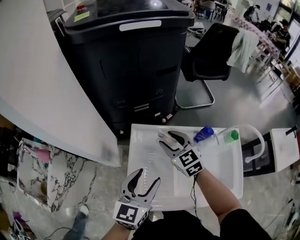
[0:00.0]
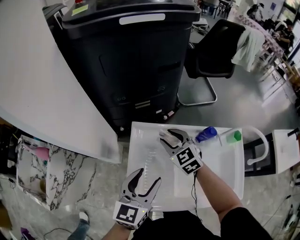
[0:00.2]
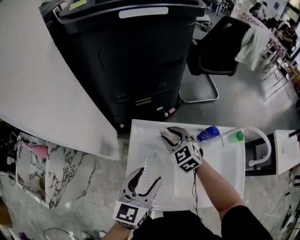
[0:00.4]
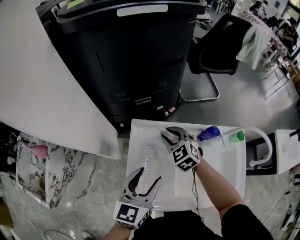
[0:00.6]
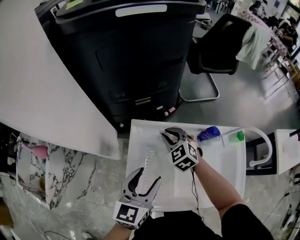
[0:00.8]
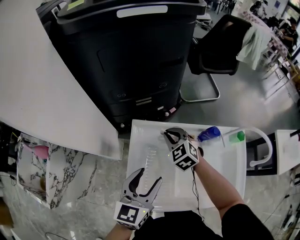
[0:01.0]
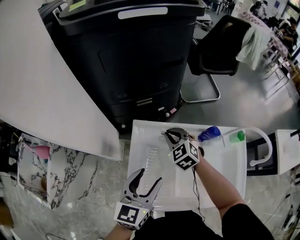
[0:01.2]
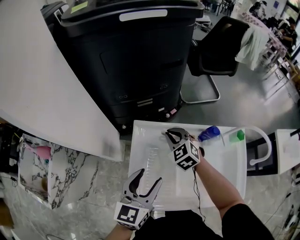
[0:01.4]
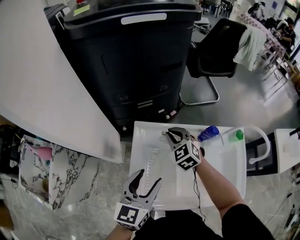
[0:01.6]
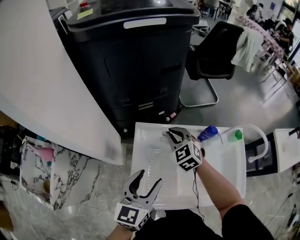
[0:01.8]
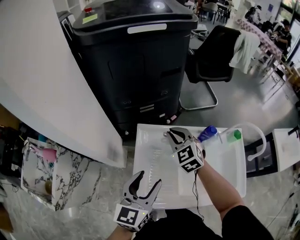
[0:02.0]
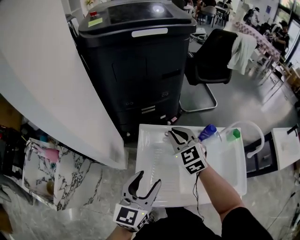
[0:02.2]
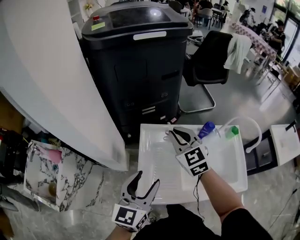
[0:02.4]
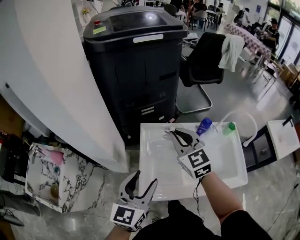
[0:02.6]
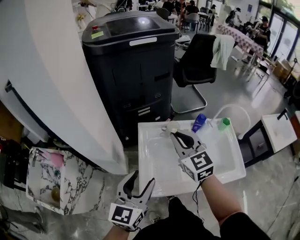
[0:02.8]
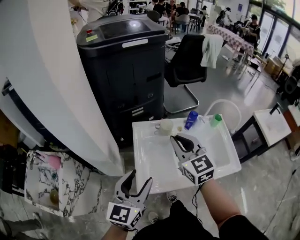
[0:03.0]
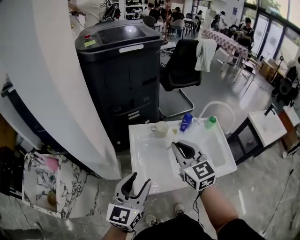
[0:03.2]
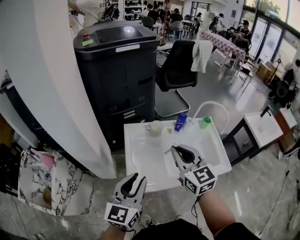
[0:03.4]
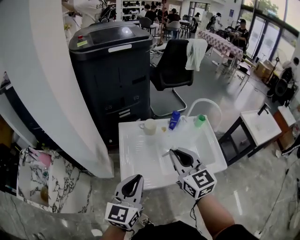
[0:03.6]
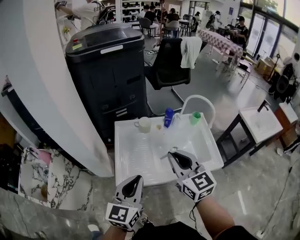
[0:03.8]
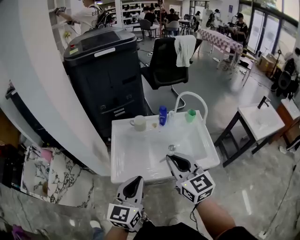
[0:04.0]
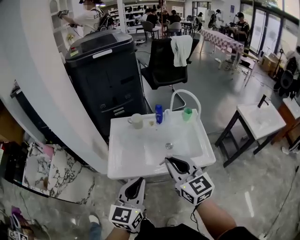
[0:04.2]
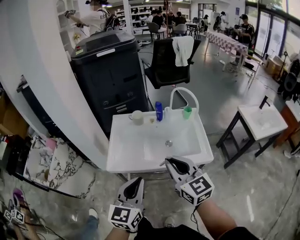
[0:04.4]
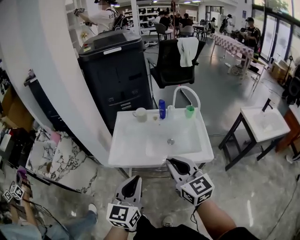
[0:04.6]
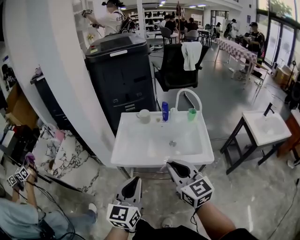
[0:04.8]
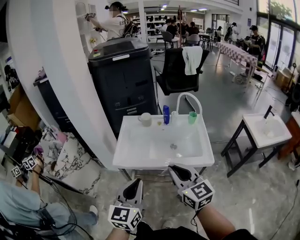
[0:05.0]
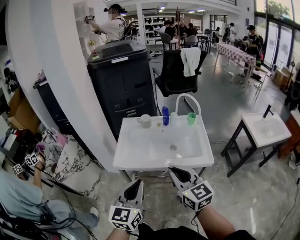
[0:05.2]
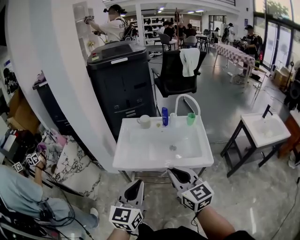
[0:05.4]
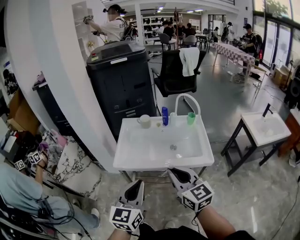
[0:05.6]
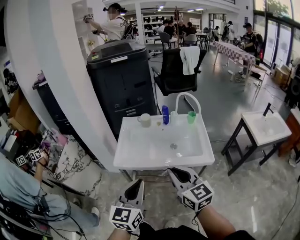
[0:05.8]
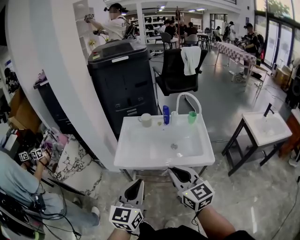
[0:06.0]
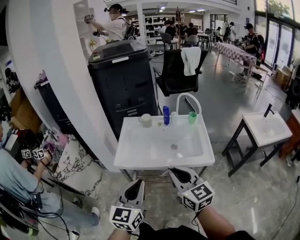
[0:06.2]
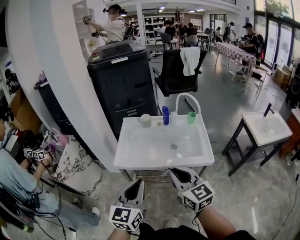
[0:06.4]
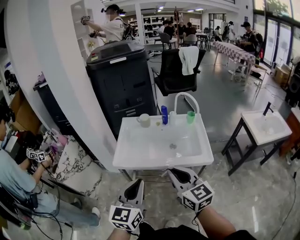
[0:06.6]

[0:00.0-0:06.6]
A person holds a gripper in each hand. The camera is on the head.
0:00.0 to 0:01.6: The right gripper closes.
0:01.6 to 0:03.2: The left gripper goes some 20 cm backward and upward. The right gripper is displaced backward and upward by about 30 cm, and turns by approximately 40 degrees.
0:03.2 to 0:05.0: The grippers both shift backward and to the right by approximately 30 cm. The left gripper closes up.
0:05.0 to 0:06.6: The grippers move only a little.

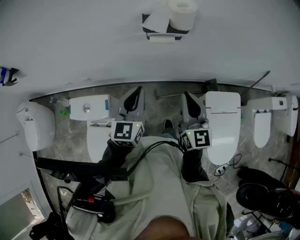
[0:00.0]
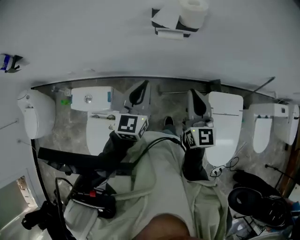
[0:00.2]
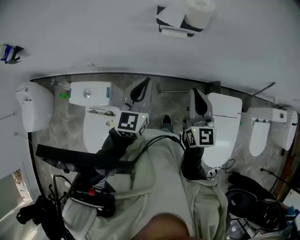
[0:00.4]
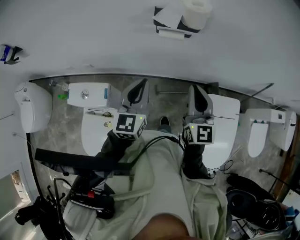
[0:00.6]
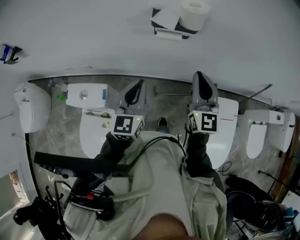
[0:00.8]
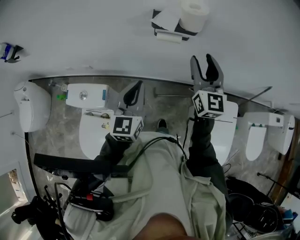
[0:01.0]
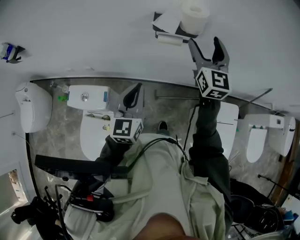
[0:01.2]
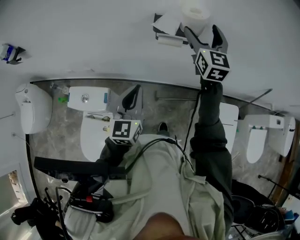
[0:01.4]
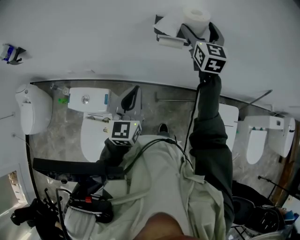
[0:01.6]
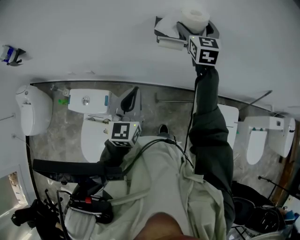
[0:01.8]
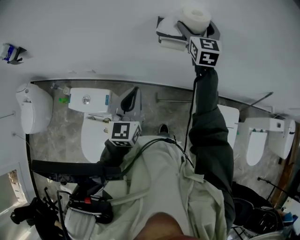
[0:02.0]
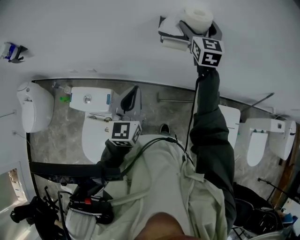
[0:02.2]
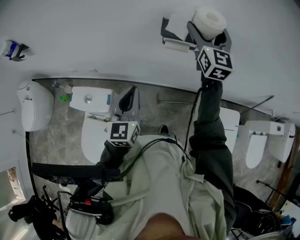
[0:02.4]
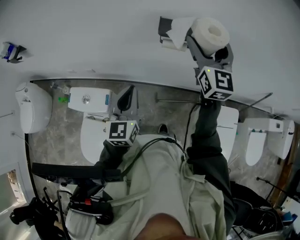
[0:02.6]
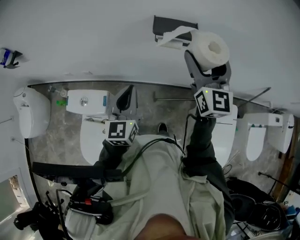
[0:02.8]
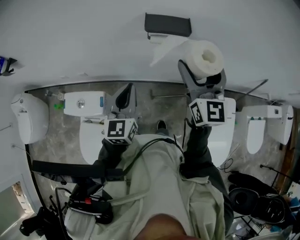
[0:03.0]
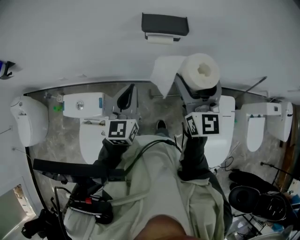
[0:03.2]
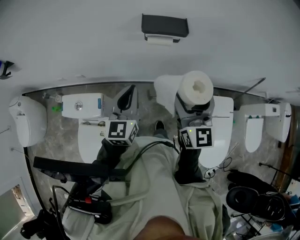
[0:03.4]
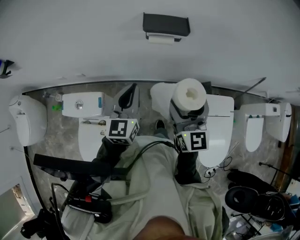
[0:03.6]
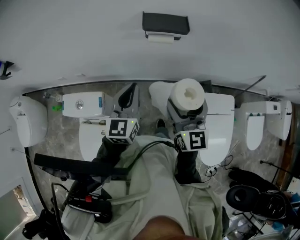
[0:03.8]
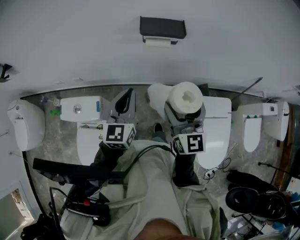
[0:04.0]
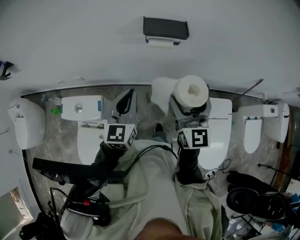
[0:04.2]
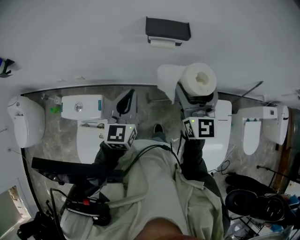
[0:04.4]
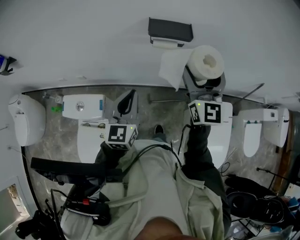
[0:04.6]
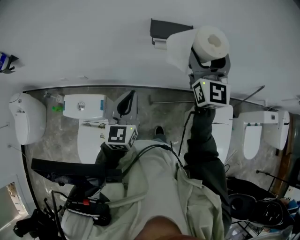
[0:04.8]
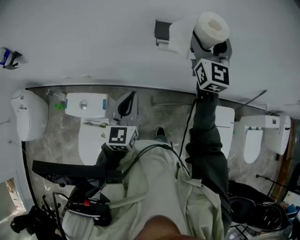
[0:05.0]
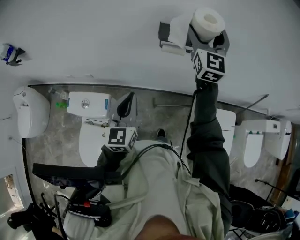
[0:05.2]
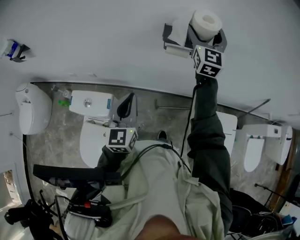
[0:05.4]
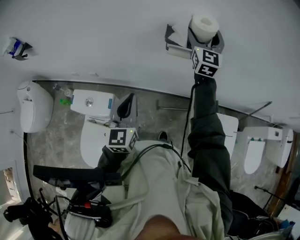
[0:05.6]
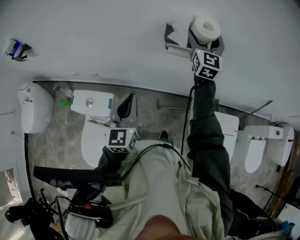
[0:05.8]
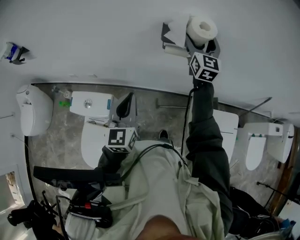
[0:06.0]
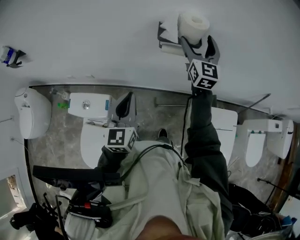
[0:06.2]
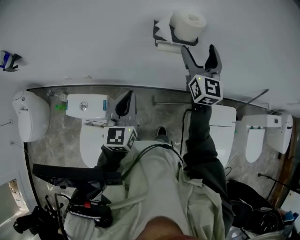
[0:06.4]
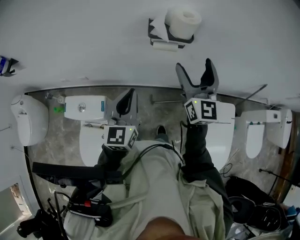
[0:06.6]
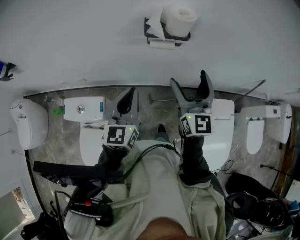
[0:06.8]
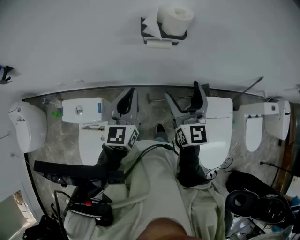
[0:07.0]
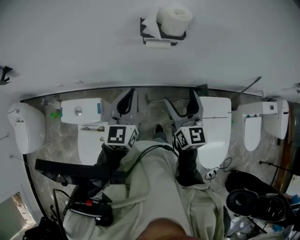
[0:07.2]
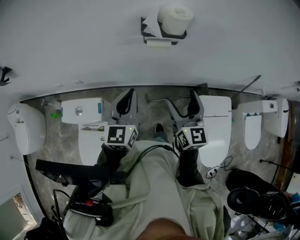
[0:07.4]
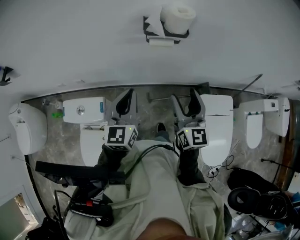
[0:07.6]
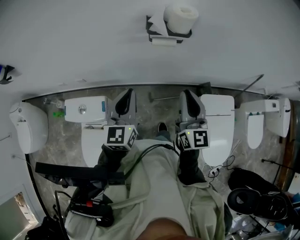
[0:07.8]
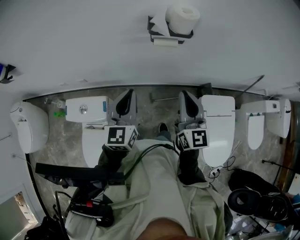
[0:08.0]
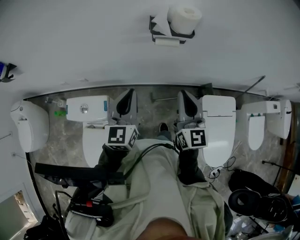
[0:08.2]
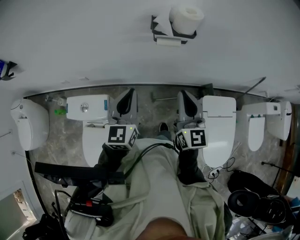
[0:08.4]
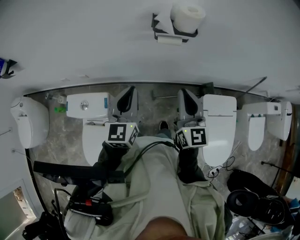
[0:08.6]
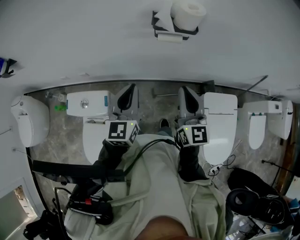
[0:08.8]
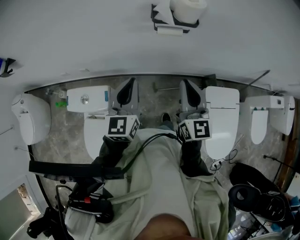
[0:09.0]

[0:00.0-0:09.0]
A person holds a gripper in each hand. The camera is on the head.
0:00.0 to 0:01.6: The right gripper travels forward by roughly 25 cm, and opens up.
0:01.6 to 0:03.0: The right gripper travels backward by about 15 cm.
0:04.4 to 0:06.0: The right gripper travels forward by about 25 cm.
0:06.0 to 0:07.6: The right gripper shifts approximately 25 cm backward.
0:07.6 to 0:09.0: The right gripper closes.

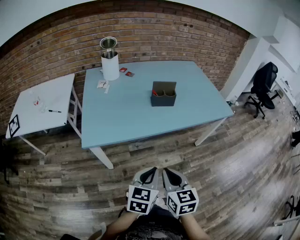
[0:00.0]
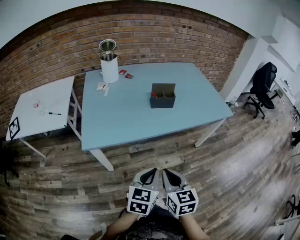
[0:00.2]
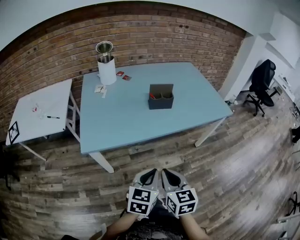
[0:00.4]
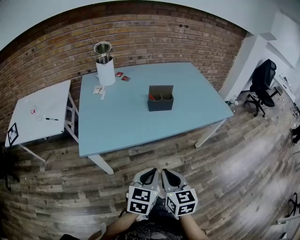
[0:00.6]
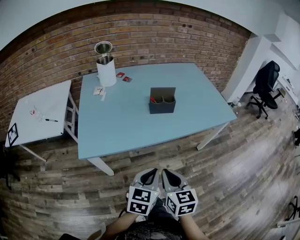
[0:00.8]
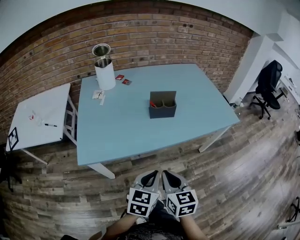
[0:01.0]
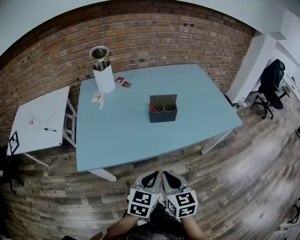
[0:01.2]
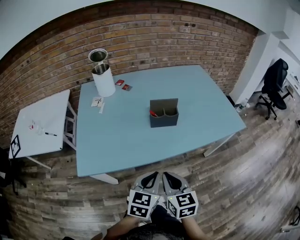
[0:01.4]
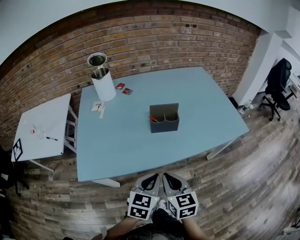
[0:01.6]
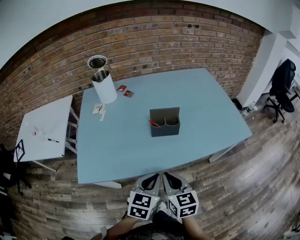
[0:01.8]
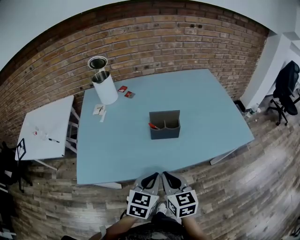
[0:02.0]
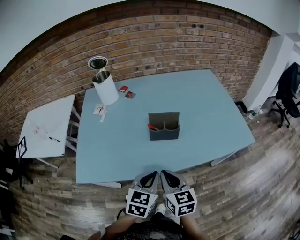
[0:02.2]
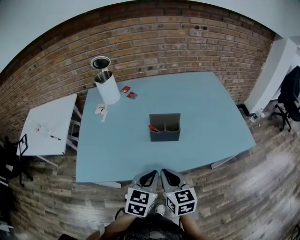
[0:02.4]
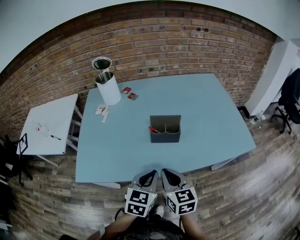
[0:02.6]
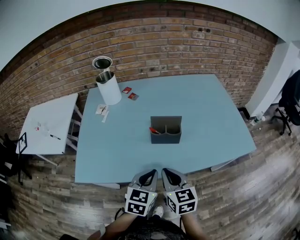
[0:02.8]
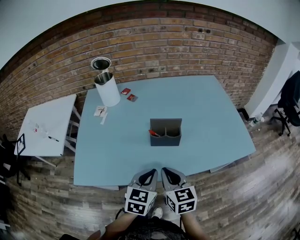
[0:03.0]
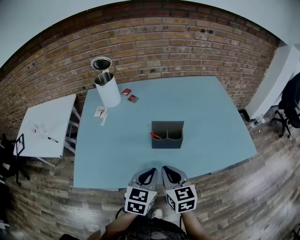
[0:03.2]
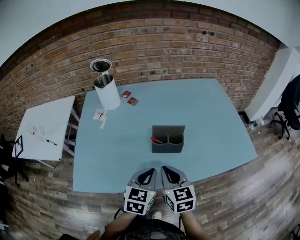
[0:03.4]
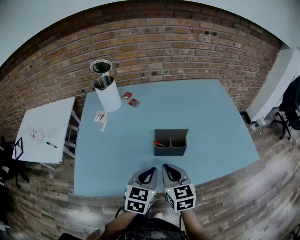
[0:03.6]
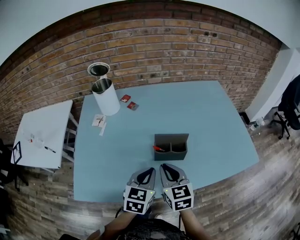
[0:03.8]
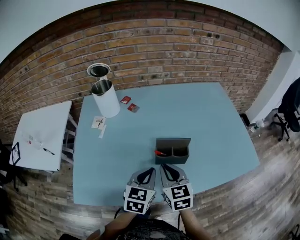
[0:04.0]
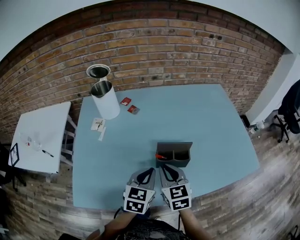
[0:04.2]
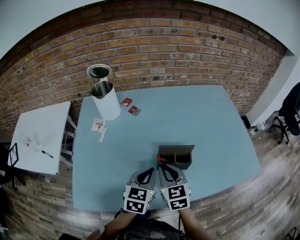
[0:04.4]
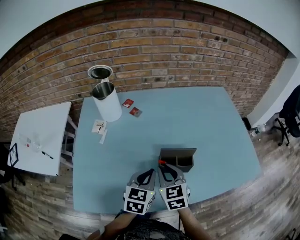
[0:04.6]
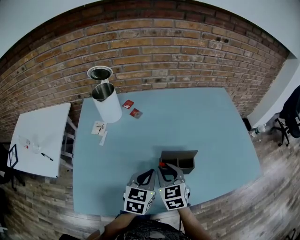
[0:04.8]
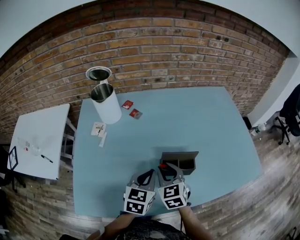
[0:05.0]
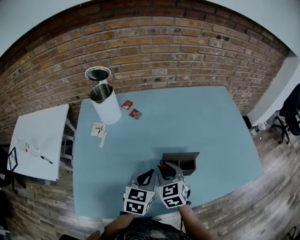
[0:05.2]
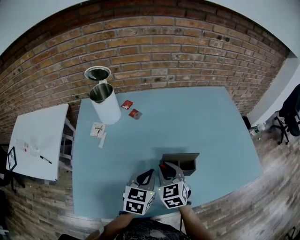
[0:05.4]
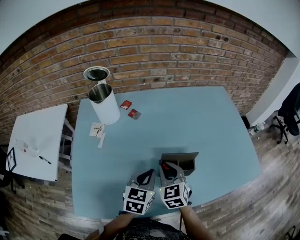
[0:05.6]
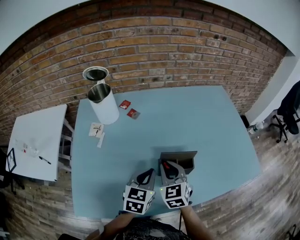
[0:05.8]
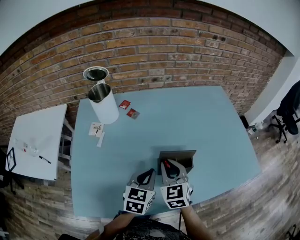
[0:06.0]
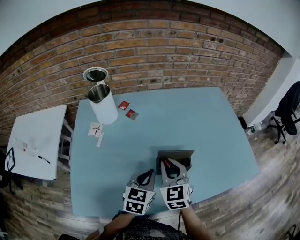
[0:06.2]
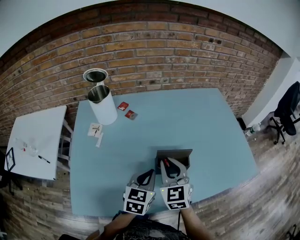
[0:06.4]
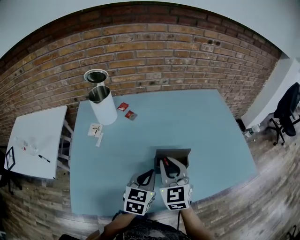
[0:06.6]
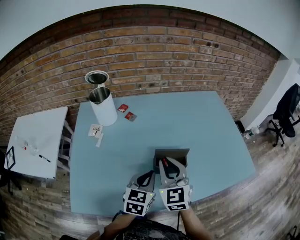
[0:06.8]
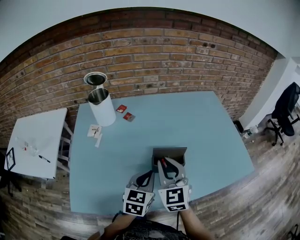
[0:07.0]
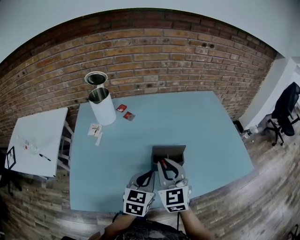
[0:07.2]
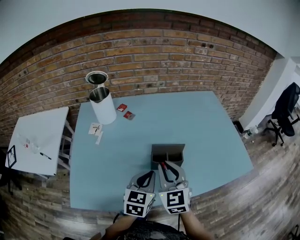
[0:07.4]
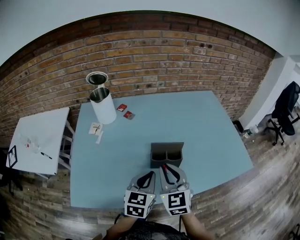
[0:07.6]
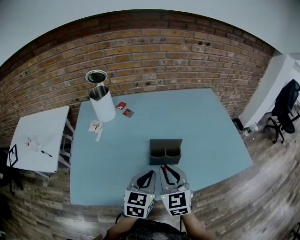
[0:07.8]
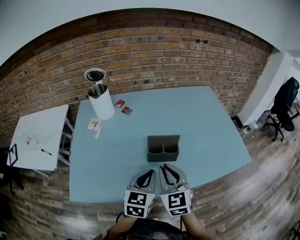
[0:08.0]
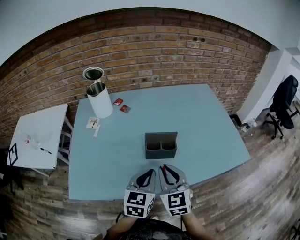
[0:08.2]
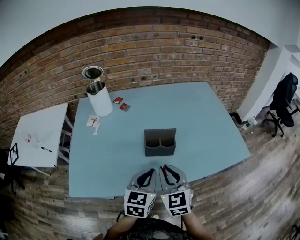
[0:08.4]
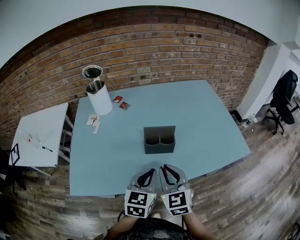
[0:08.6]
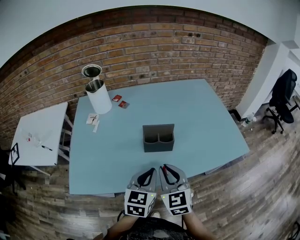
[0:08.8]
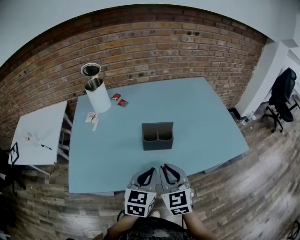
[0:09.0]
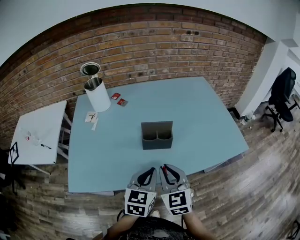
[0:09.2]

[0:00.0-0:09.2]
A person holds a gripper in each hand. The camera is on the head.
0:00.0 to 0:01.6: Both grippers move forward, roughly 15 cm.
0:01.6 to 0:03.0: Both grippers move forward, approximately 10 cm.
0:03.0 to 0:04.6: Both grippers move forward, approximately 15 cm.
0:04.6 to 0:06.2: The grippers stay close to where they were, moving slightly.
0:06.2 to 0:07.6: Both grippers travel together backward, roughly 5 cm.
0:07.6 to 0:09.2: Both grippers travel together backward, some 10 cm.
